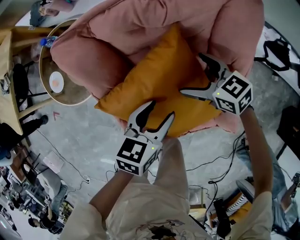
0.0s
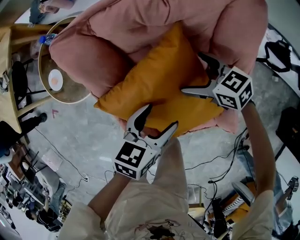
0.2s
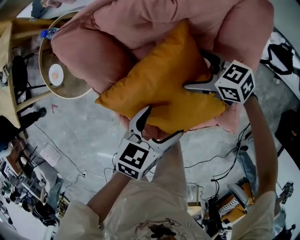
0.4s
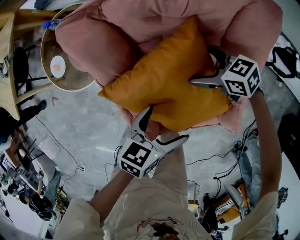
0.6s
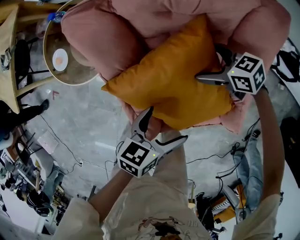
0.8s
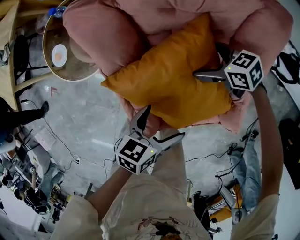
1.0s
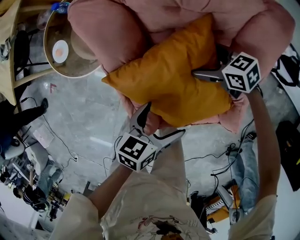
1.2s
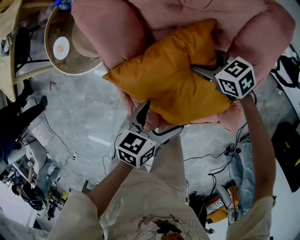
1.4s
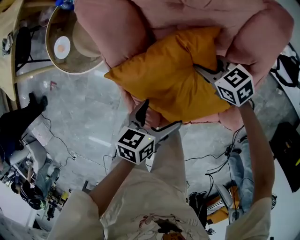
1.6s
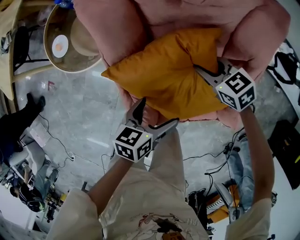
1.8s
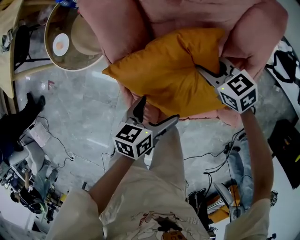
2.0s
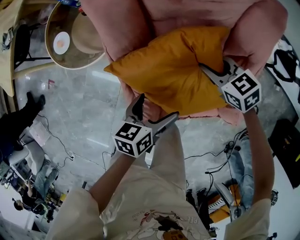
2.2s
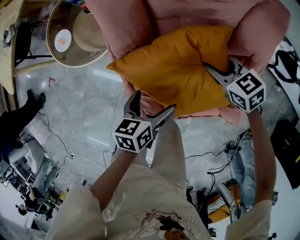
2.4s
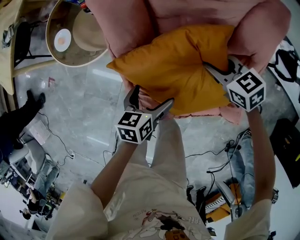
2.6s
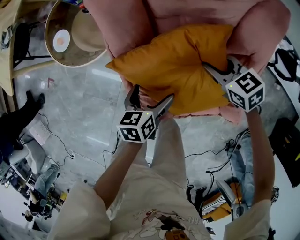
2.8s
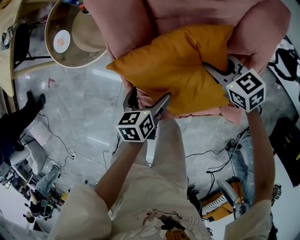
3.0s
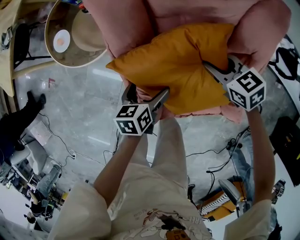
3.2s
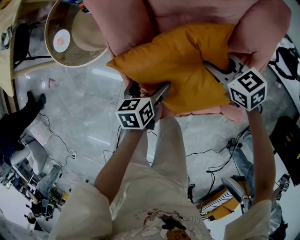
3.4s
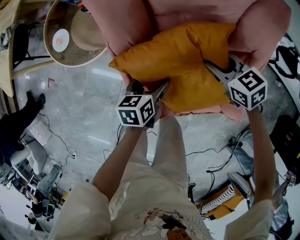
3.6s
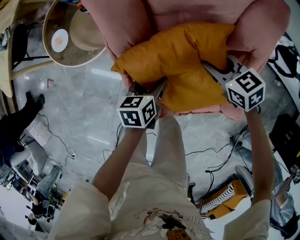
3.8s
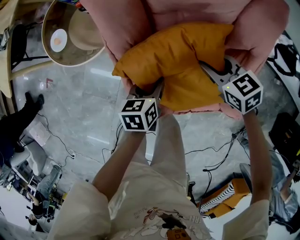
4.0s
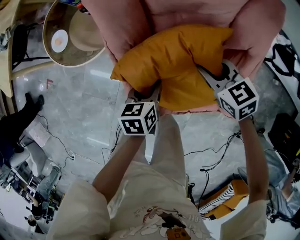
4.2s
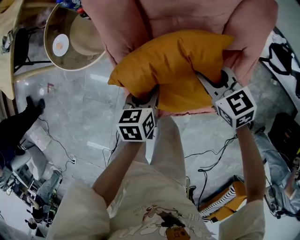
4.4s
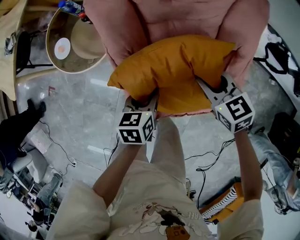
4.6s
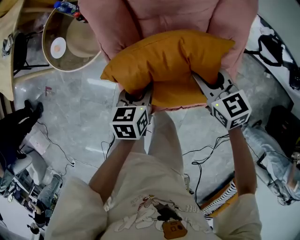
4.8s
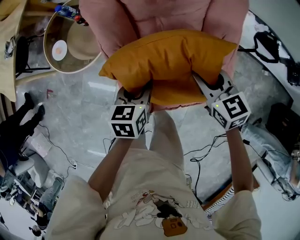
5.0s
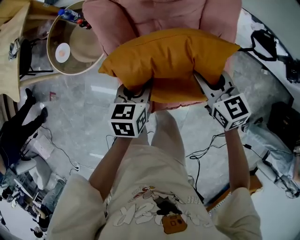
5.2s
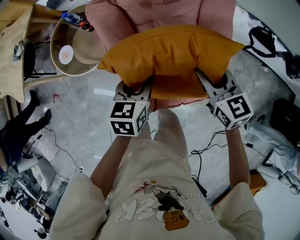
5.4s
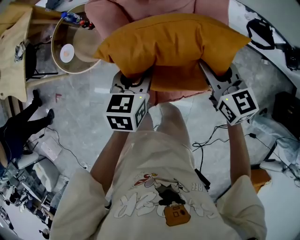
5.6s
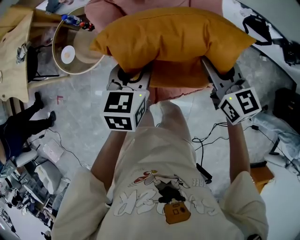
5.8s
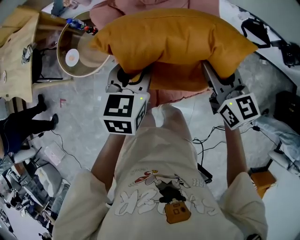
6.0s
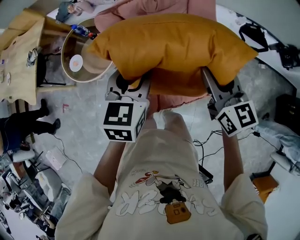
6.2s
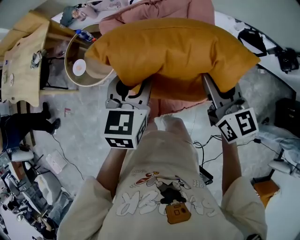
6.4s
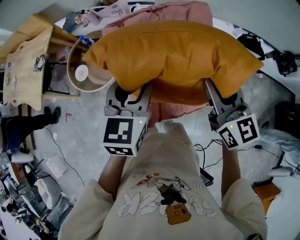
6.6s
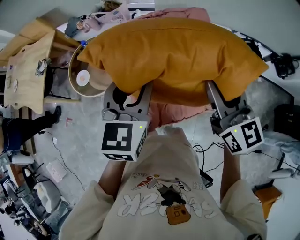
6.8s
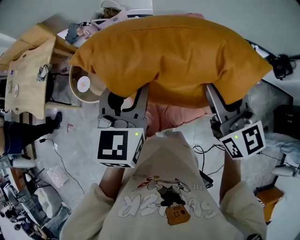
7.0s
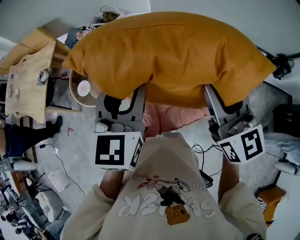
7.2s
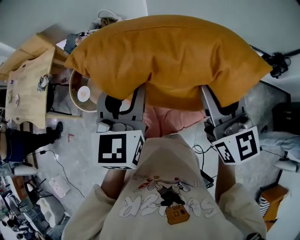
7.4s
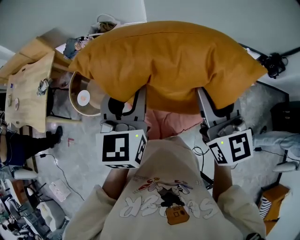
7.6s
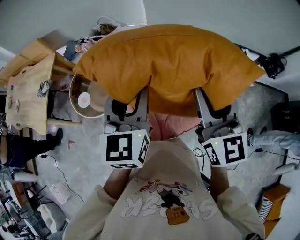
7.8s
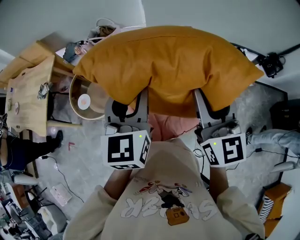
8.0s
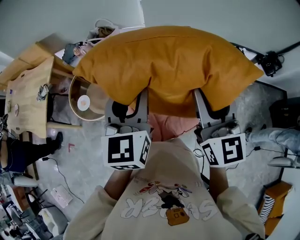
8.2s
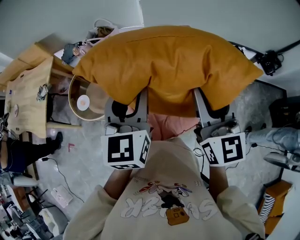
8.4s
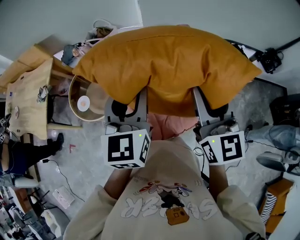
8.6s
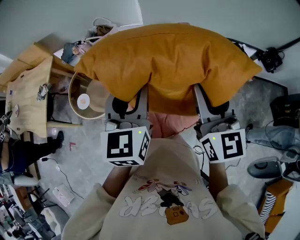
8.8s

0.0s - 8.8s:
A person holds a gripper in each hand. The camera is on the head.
0.0s - 1.4s: The right gripper moves downward, roughly 5 cm, and closes. Meanwhile the left gripper shifts by some 10 cm, and opens up.
1.4s - 3.0s: The right gripper travels upward by approximately 5 cm. The left gripper ends up some 10 cm from where it was, and rotates roughly 20 degrees.
3.0s - 4.4s: The right gripper travels upward by roughly 5 cm, while the left gripper closes up.
4.4s - 5.8s: Both grippers move upward, roughly 25 cm. The left gripper changes its angle by approximately 30 degrees, while the right gripper turns by some 30 degrees.
5.8s - 7.4s: The two grippers go roughly 25 cm upward. The right gripper turns by approximately 30 degrees, while the left gripper changes its angle by approximately 30 degrees.
7.4s - 8.8s: The grippers make only small movements.

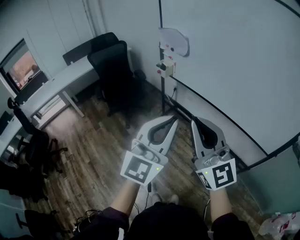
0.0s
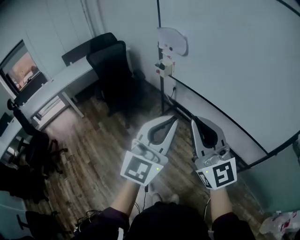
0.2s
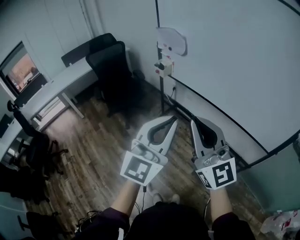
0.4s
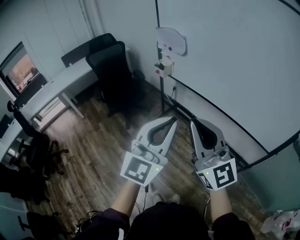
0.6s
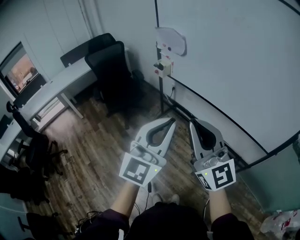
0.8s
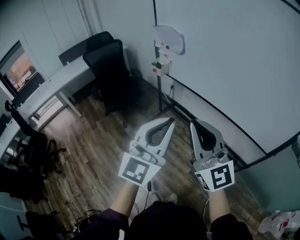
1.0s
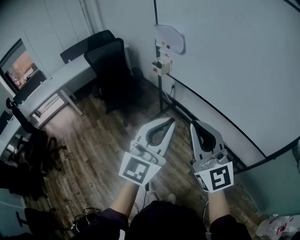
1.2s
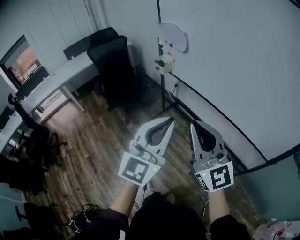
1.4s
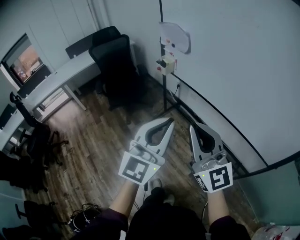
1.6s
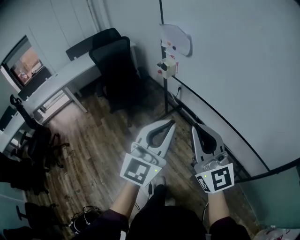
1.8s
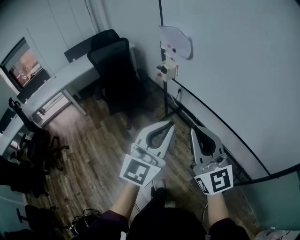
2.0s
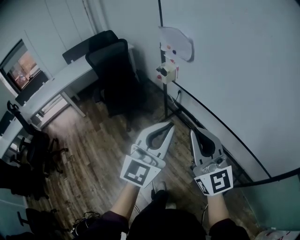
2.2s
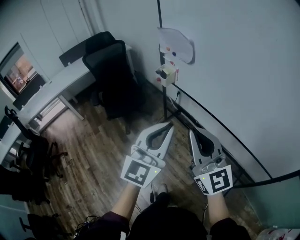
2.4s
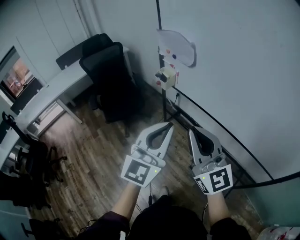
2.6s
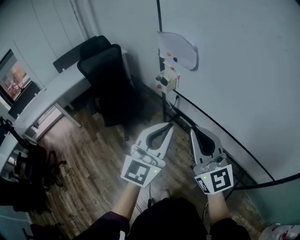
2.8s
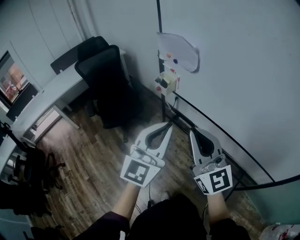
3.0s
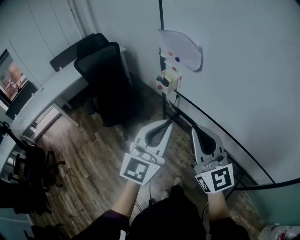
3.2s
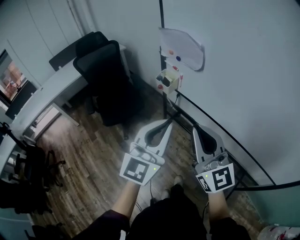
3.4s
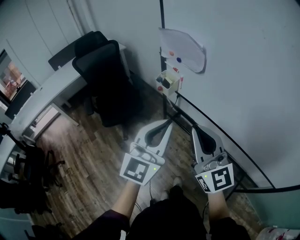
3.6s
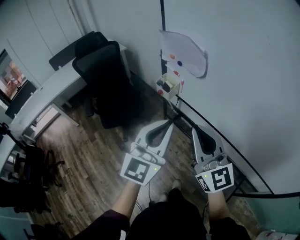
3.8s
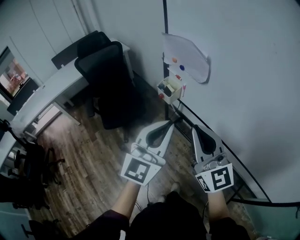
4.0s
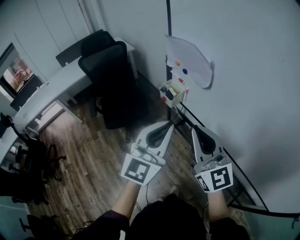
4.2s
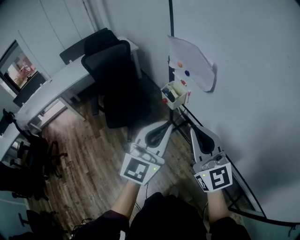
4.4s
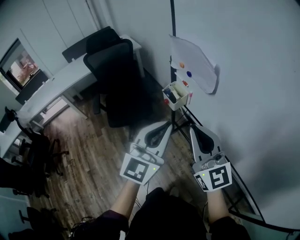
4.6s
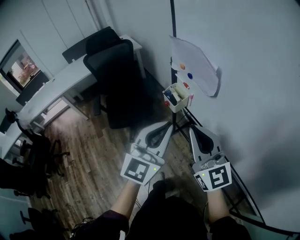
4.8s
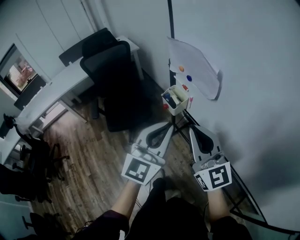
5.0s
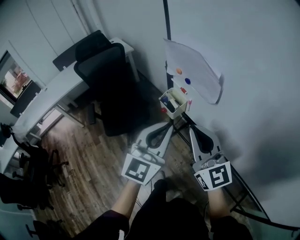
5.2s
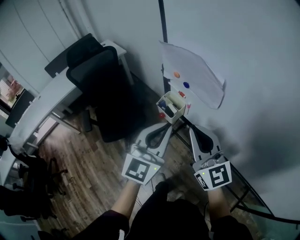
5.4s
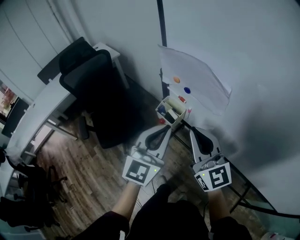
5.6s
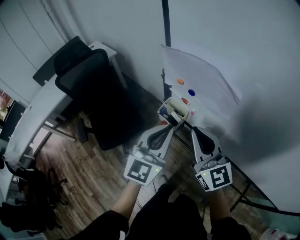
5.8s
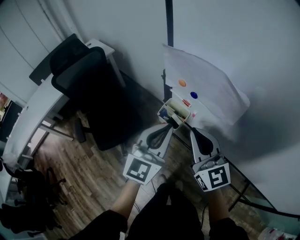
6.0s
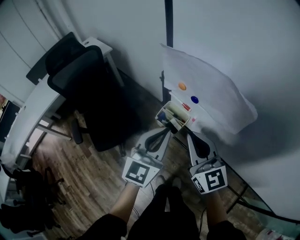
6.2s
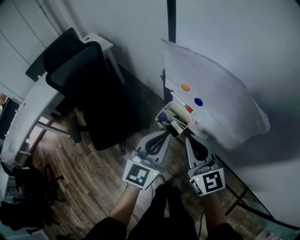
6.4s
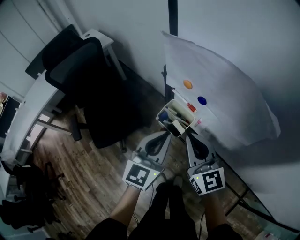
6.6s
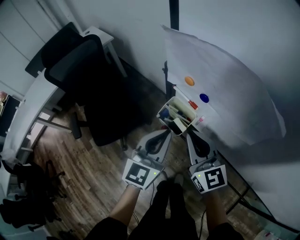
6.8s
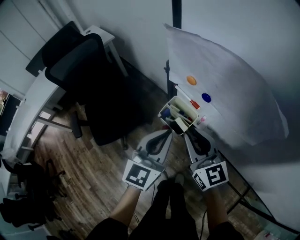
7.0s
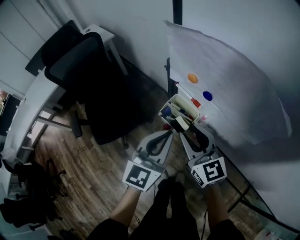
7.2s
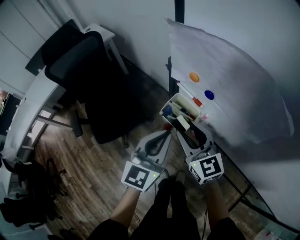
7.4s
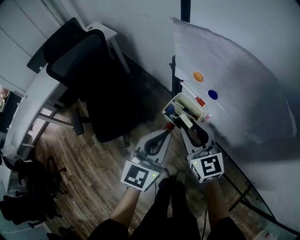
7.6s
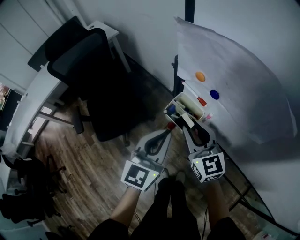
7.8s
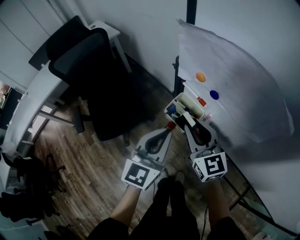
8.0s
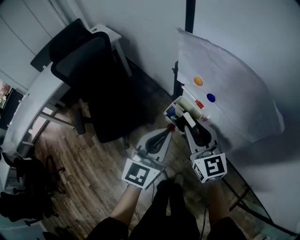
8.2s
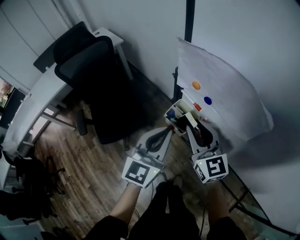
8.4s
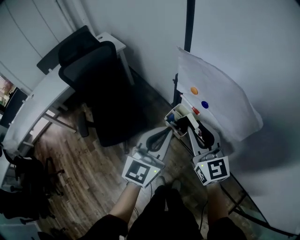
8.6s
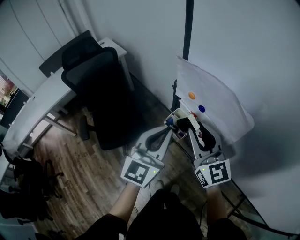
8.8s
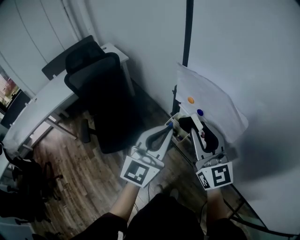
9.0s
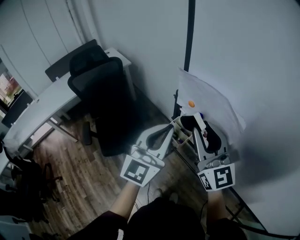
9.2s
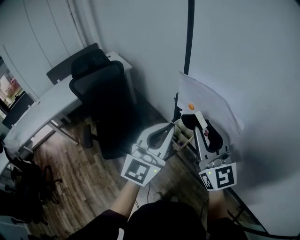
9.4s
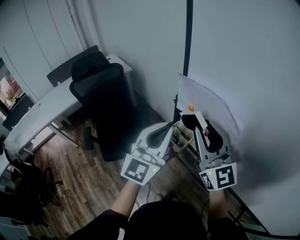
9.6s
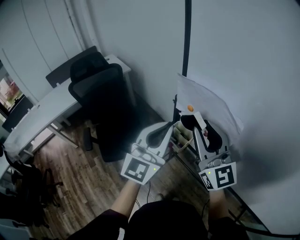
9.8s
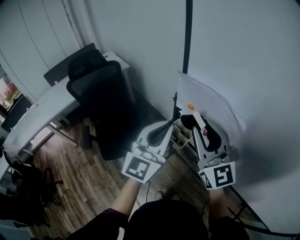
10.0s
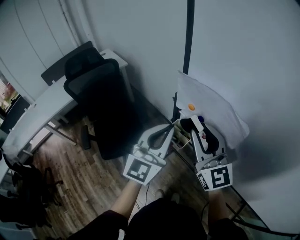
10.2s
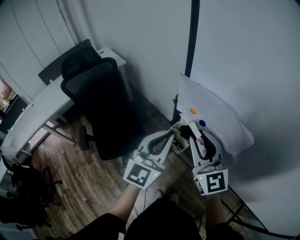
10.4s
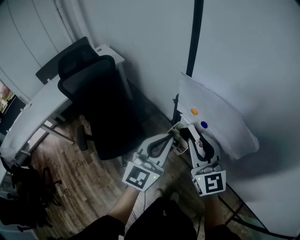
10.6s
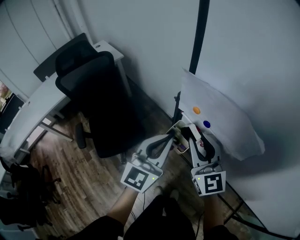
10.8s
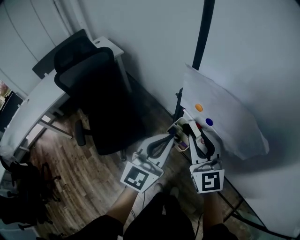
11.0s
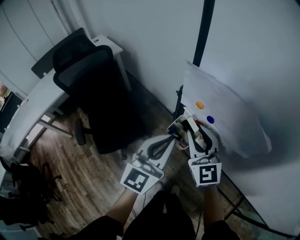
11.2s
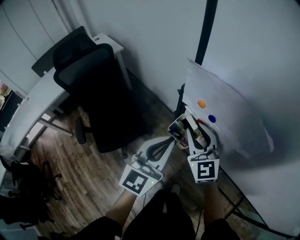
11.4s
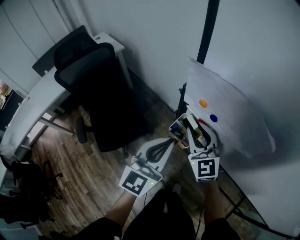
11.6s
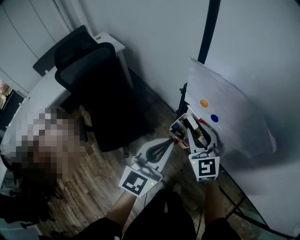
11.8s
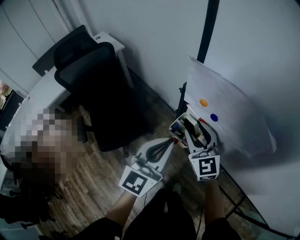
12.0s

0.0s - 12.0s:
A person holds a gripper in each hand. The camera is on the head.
0.0s - 1.6s: The grippers both shift forward by some 5 cm.
1.6s - 3.0s: Both grippers move forward, roughly 20 cm.
3.0s - 4.4s: Both grippers travel together forward, roughly 20 cm.
4.4s - 6.0s: Both grippers move forward, approximately 20 cm.
6.0s - 7.6s: The right gripper travels downward and forward by roughly 15 cm, and opens up, while the left gripper shifts roughly 10 cm downward.
7.6s - 9.0s: Both grippers travel together upward, about 20 cm.
9.0s - 10.4s: The right gripper goes upward and returns, some 5 cm each way.
10.4s - 12.0s: The right gripper is displaced downward and forward by roughly 15 cm. The left gripper is displaced downward by roughly 5 cm.

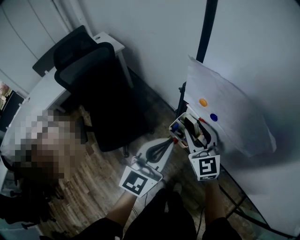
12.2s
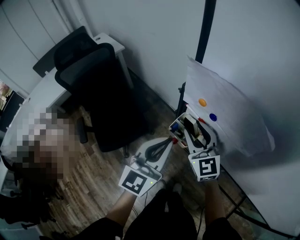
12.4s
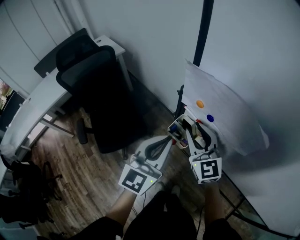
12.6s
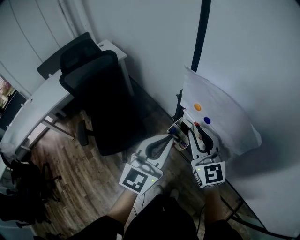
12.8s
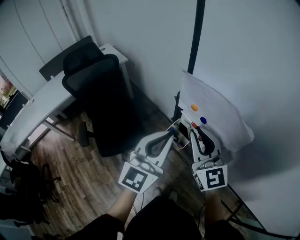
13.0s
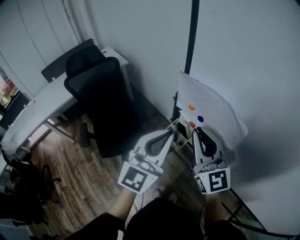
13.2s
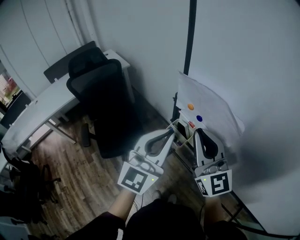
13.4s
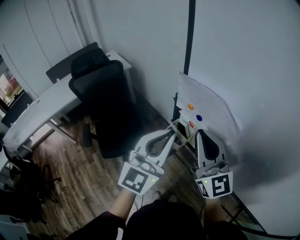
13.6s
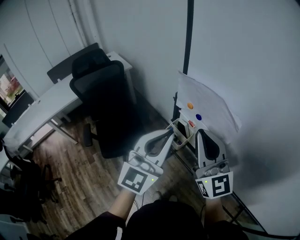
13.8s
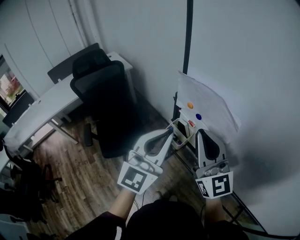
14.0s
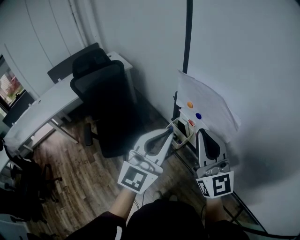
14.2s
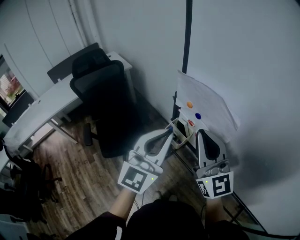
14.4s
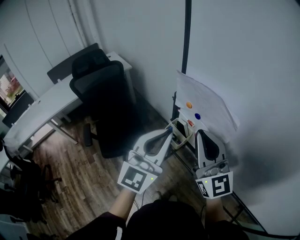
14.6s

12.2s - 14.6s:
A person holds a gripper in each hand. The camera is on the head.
12.2s - 13.4s: The left gripper heads upward, covering approximately 15 cm. The right gripper heads upward and backward, covering about 20 cm, turns by some 20 degrees, and closes.
13.4s - 14.6s: The grippers make only small movements.
